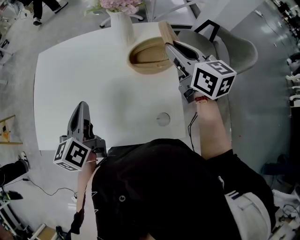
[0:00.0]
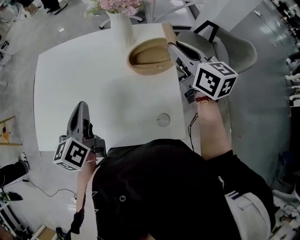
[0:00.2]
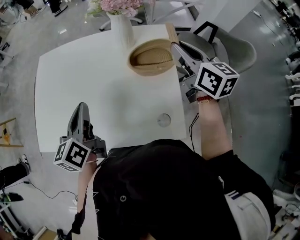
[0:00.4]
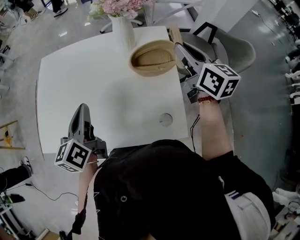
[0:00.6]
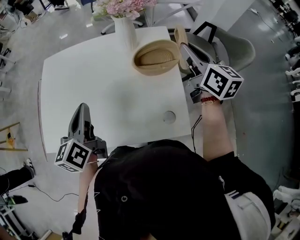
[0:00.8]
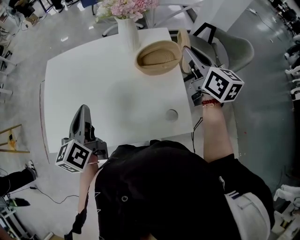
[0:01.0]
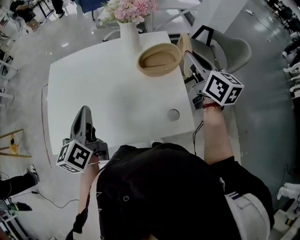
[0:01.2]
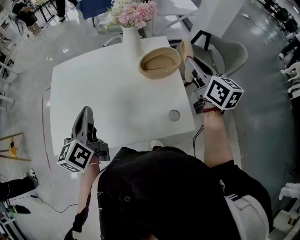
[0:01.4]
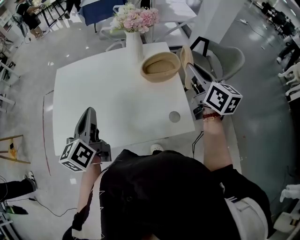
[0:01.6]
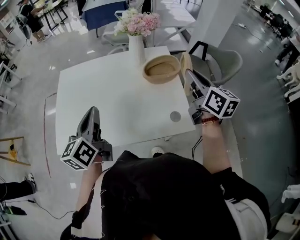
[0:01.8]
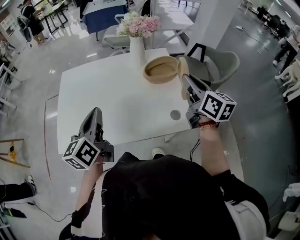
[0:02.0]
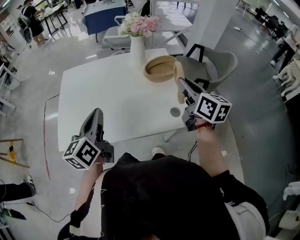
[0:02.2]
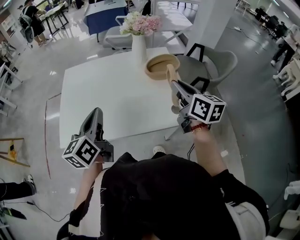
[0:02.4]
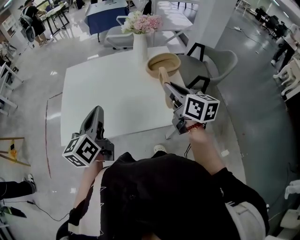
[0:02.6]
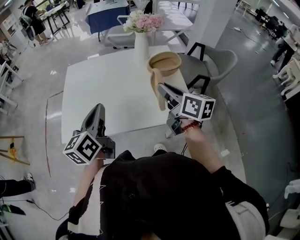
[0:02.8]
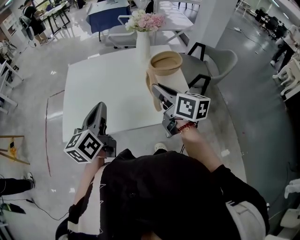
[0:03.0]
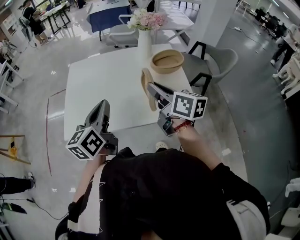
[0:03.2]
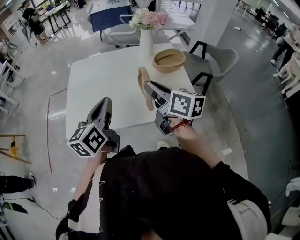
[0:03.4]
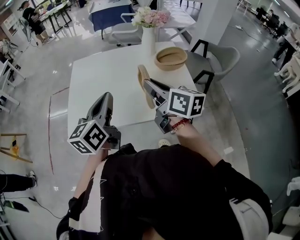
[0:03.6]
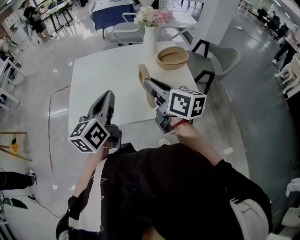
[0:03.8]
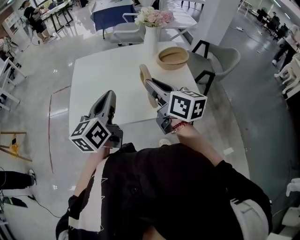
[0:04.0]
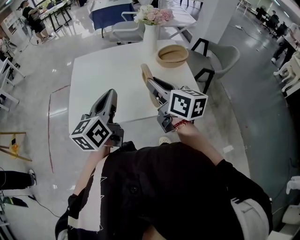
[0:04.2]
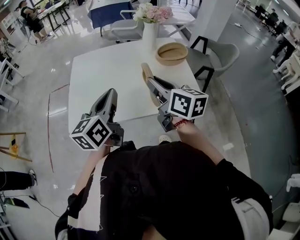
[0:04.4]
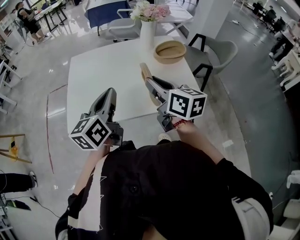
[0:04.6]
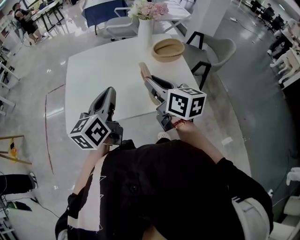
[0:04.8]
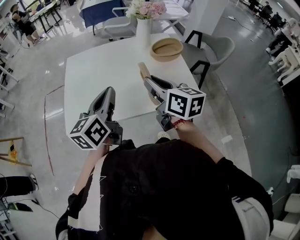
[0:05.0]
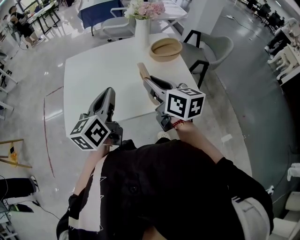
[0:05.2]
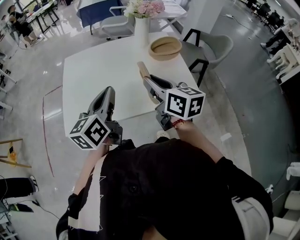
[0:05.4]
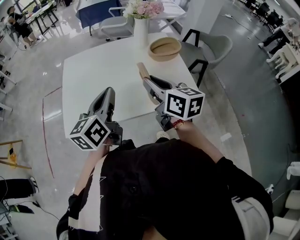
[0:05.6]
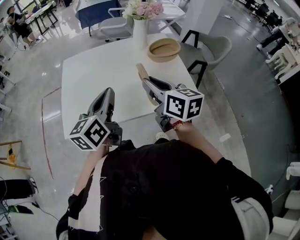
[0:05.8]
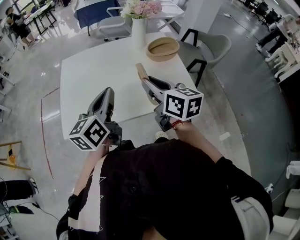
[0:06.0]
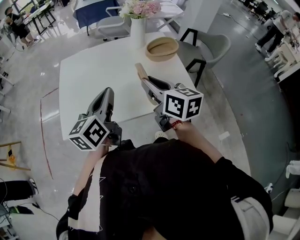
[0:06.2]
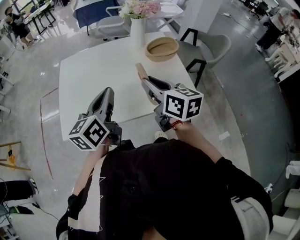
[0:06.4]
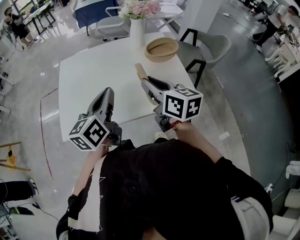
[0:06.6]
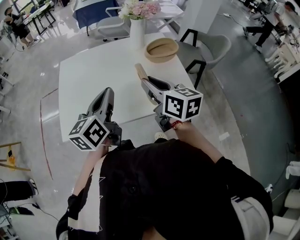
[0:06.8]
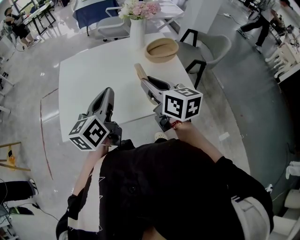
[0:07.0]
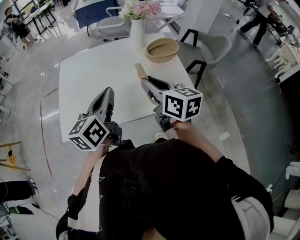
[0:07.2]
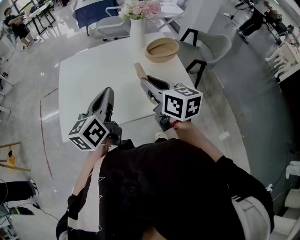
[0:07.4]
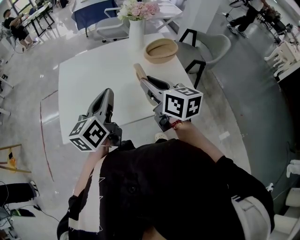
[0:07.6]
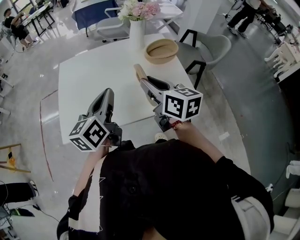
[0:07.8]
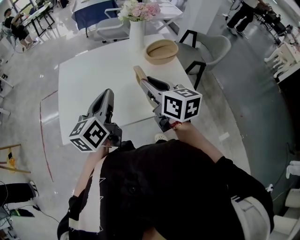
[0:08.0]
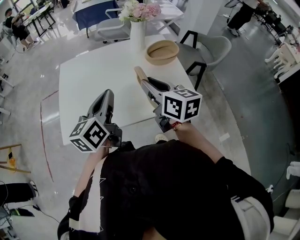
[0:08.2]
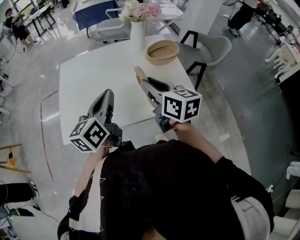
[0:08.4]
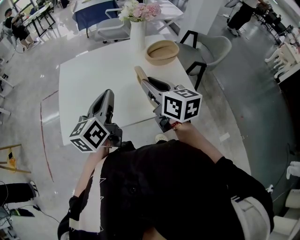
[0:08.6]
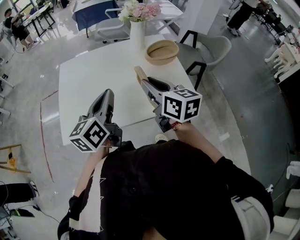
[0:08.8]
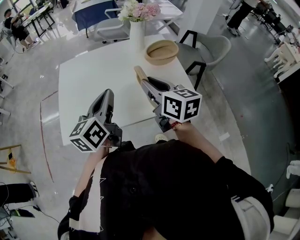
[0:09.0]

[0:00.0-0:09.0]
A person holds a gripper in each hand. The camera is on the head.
0:00.0 to 0:01.6: The left gripper shifts some 10 cm upward and to the left; the right gripper goes approximately 10 cm backward and upward.
0:01.6 to 0:03.0: The right gripper goes roughly 25 cm to the left and backward, while the left gripper shifts some 10 cm backward.
0:03.0 to 0:04.4: The right gripper heads to the left, covering some 5 cm.
0:04.4 to 0:06.0: The grippers move only a little.
0:06.0 to 0:09.0: Both grippers stay about where they are.

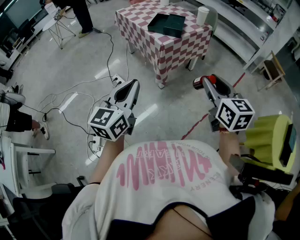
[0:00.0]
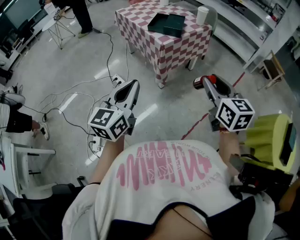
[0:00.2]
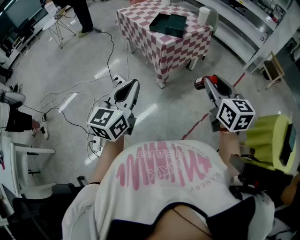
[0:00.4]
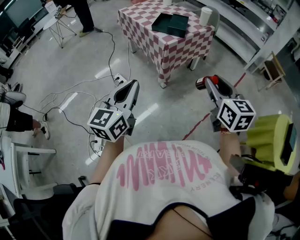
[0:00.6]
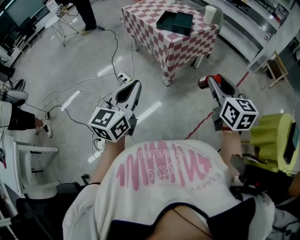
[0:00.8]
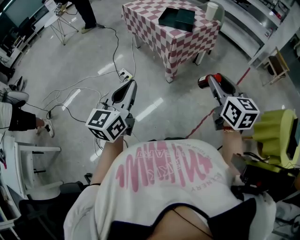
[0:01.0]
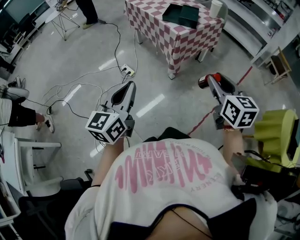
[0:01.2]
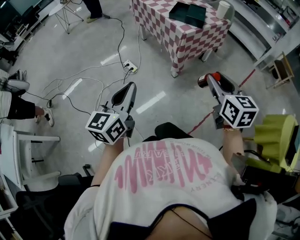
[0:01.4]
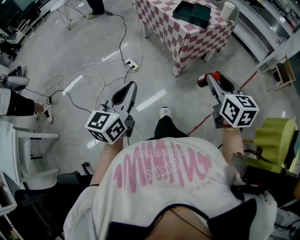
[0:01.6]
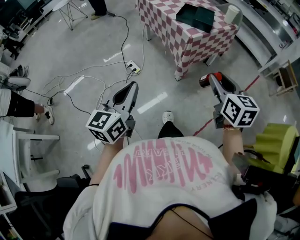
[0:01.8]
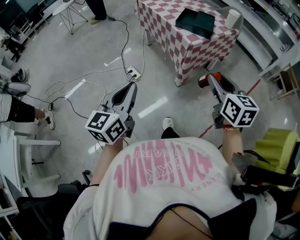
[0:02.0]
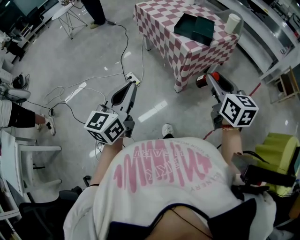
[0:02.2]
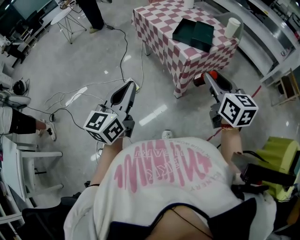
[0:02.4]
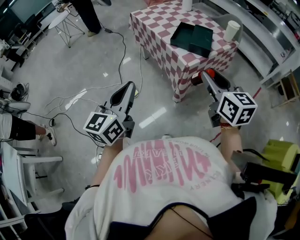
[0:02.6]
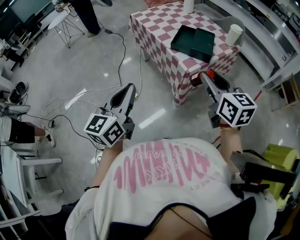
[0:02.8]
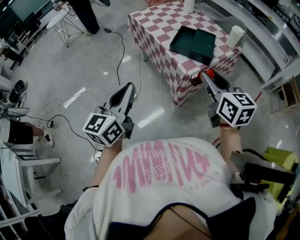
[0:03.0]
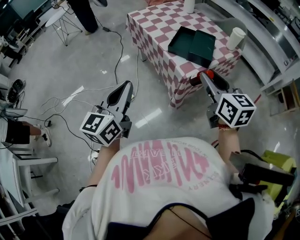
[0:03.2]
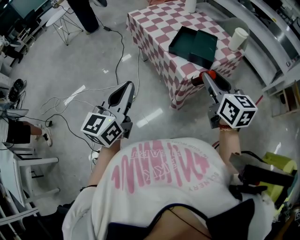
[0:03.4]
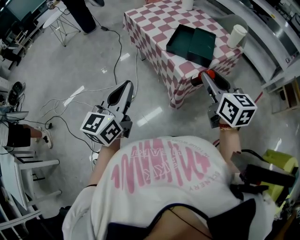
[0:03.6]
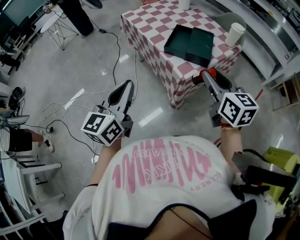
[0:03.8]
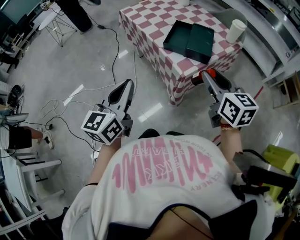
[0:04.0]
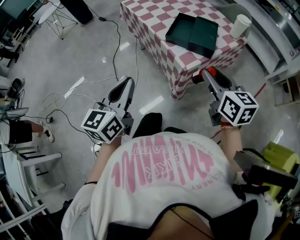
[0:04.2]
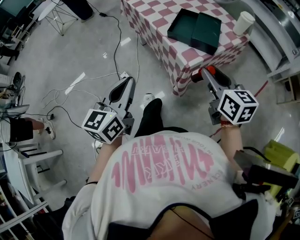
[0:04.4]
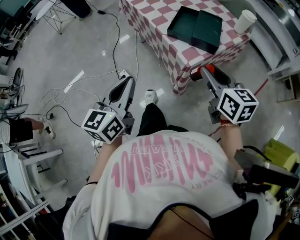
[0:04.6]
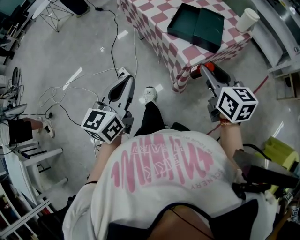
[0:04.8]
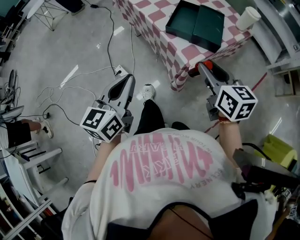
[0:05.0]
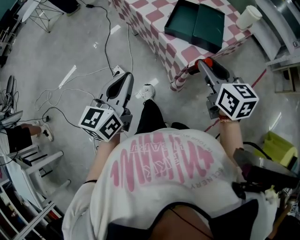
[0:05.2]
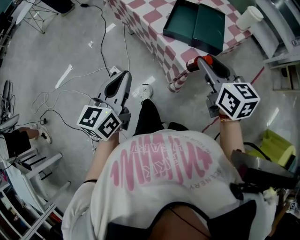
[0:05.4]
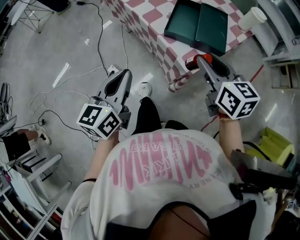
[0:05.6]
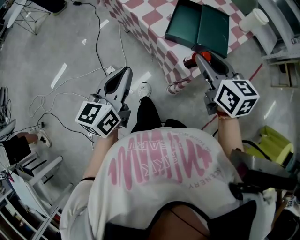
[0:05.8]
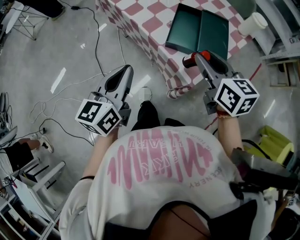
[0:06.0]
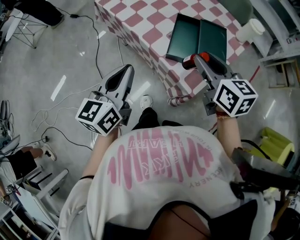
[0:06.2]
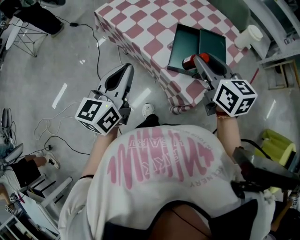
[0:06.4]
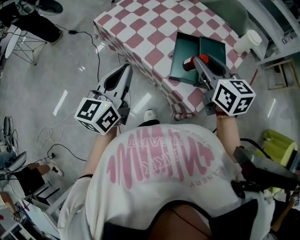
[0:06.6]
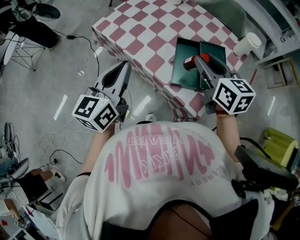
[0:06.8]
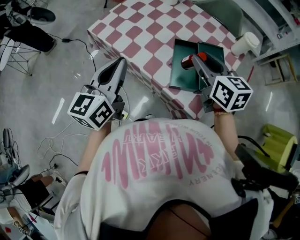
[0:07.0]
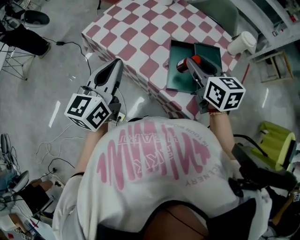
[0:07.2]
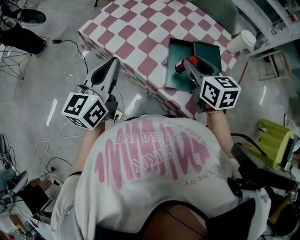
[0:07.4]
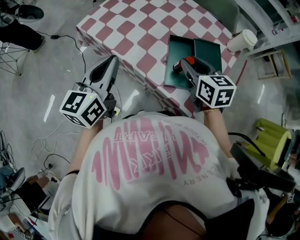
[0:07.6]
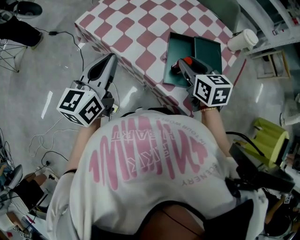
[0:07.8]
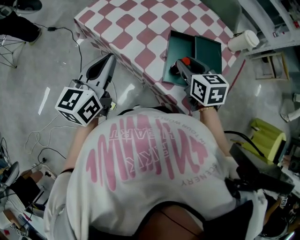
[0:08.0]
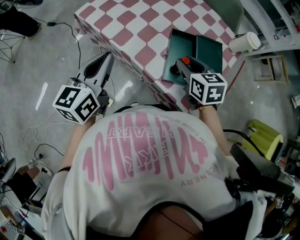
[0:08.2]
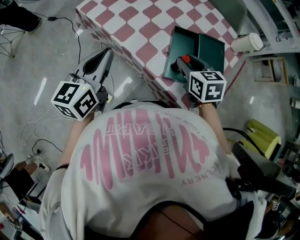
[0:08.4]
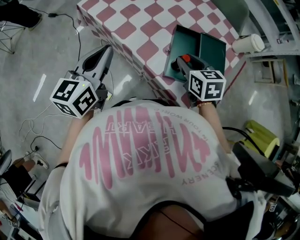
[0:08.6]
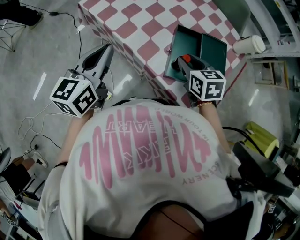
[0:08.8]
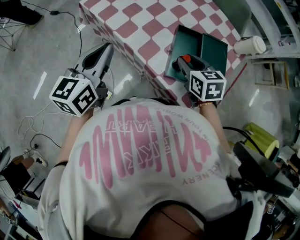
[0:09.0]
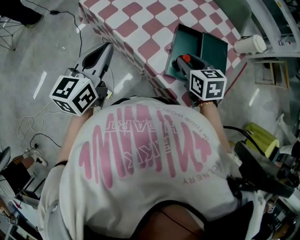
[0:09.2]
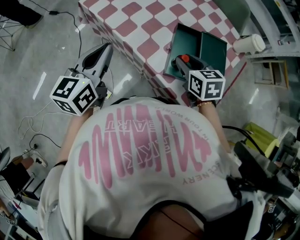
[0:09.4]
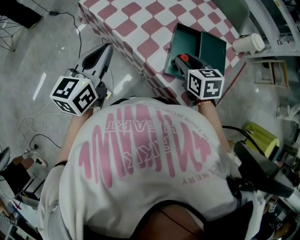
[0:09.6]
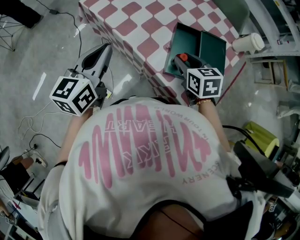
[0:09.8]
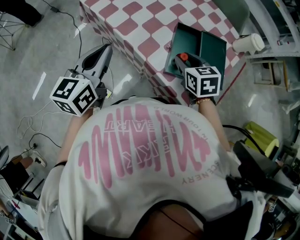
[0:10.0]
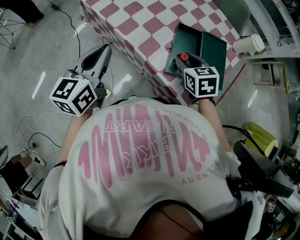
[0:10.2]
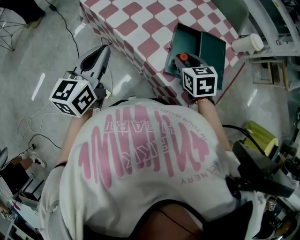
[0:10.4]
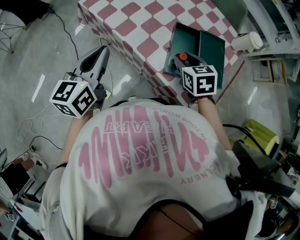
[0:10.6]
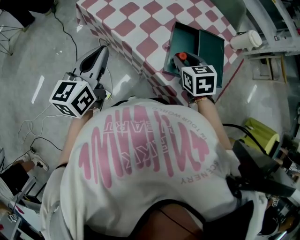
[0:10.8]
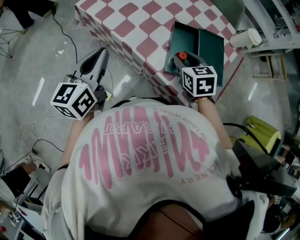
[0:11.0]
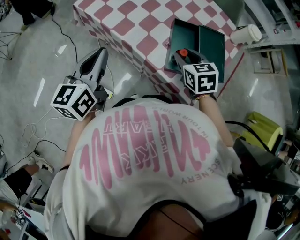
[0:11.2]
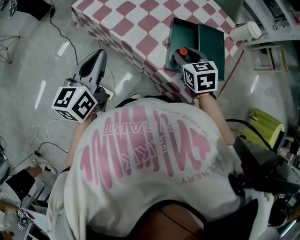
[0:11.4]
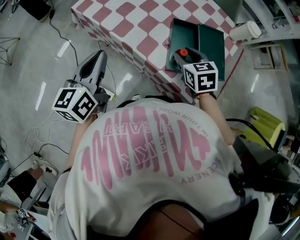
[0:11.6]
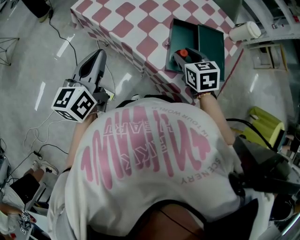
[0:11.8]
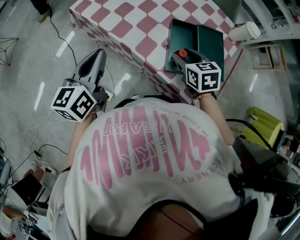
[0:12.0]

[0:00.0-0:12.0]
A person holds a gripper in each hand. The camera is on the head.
0:00.0 to 0:01.6: Both grippers move to the left, about 15 cm.
0:01.6 to 0:03.0: Both grippers travel together forward, some 30 cm.
0:03.0 to 0:04.4: The right gripper heads downward and forward, covering approximately 10 cm; the left gripper travels forward and downward by about 10 cm.
0:04.4 to 0:06.0: Both grippers move forward, roughly 20 cm.
0:06.0 to 0:07.6: Both grippers move forward, approximately 20 cm.
0:07.6 to 0:09.0: The right gripper shifts some 5 cm downward.
0:09.0 to 0:12.0: The grippers move only a little.

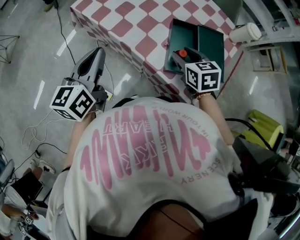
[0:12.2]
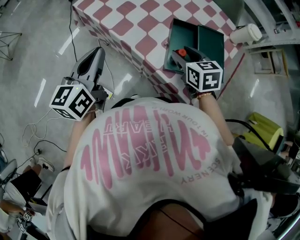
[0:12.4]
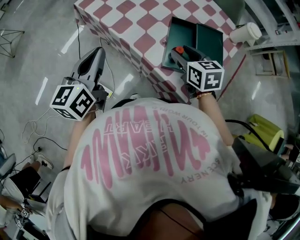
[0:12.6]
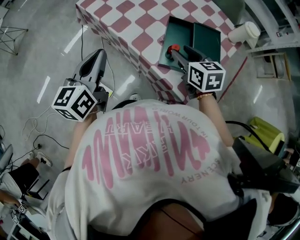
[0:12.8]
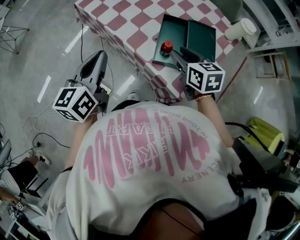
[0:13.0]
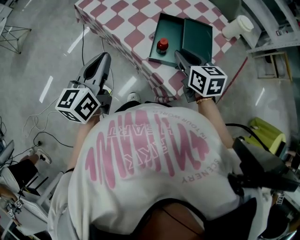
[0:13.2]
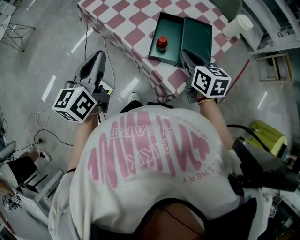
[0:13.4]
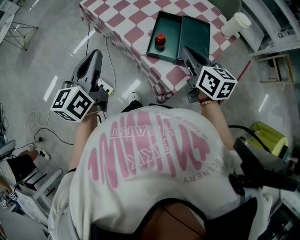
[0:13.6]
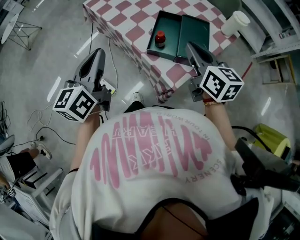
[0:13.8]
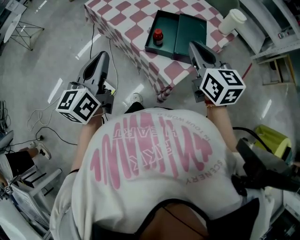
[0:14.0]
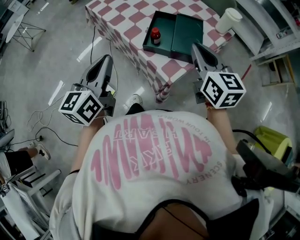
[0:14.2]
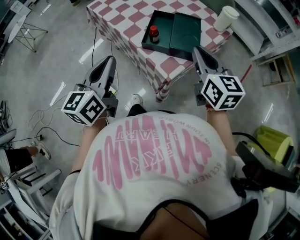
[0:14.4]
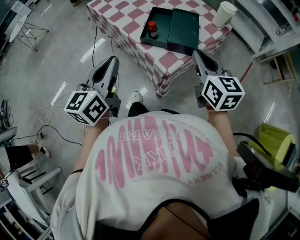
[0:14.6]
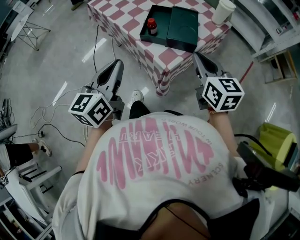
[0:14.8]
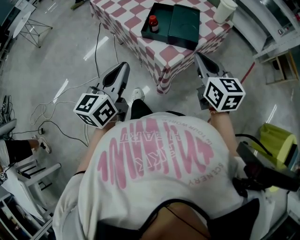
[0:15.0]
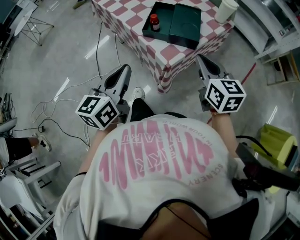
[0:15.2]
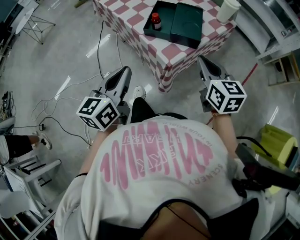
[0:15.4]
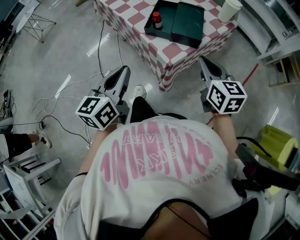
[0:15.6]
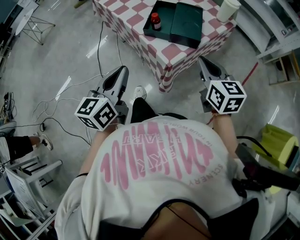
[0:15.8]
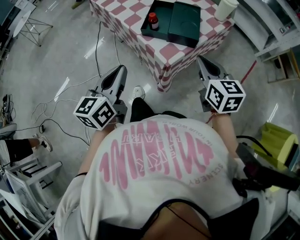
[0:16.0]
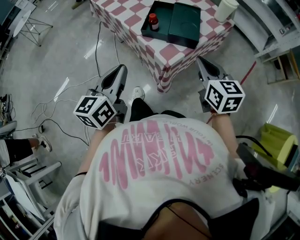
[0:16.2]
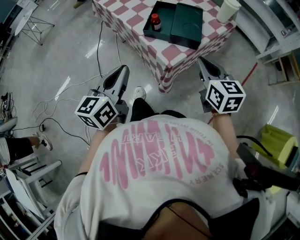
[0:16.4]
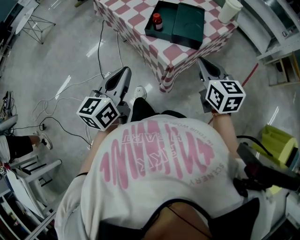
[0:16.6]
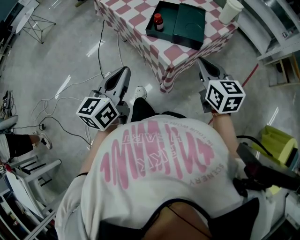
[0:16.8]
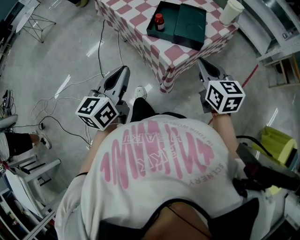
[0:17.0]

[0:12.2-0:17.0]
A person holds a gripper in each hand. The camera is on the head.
0:12.2 to 0:13.8: The left gripper goes about 20 cm backward, to the right and upward, while the right gripper travels upward, backward and to the right by about 20 cm, swivels approximately 30 degrees, and closes up.
0:13.8 to 0:15.4: The two grippers go some 20 cm backward and to the right.
0:15.4 to 0:17.0: There are only small adjustments of the grippers.
